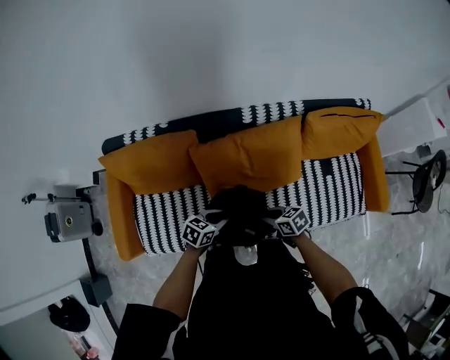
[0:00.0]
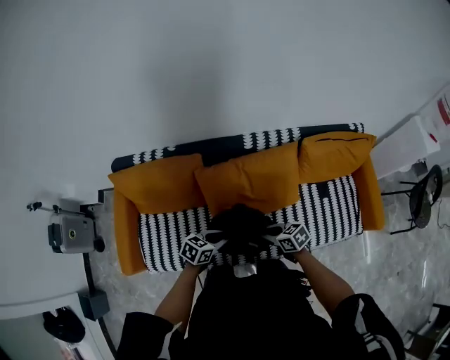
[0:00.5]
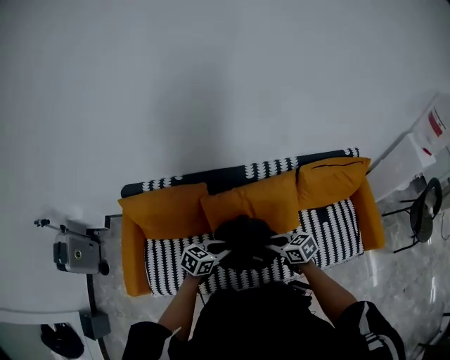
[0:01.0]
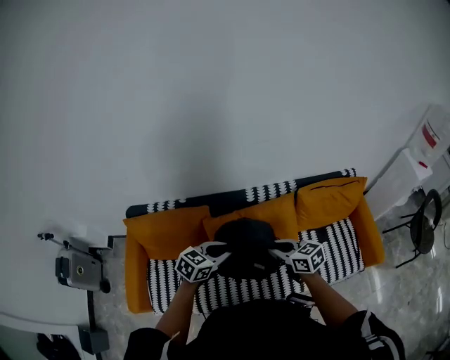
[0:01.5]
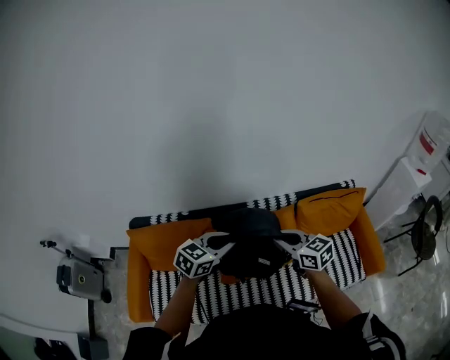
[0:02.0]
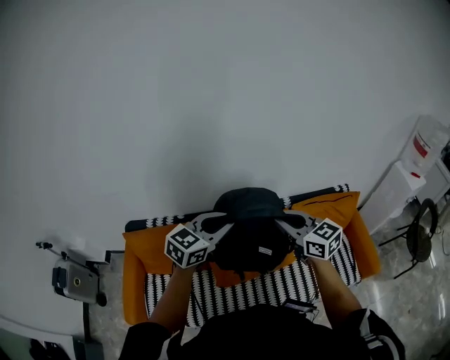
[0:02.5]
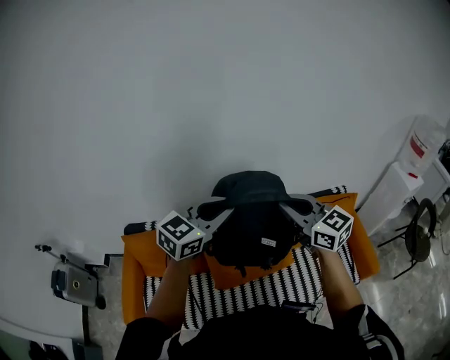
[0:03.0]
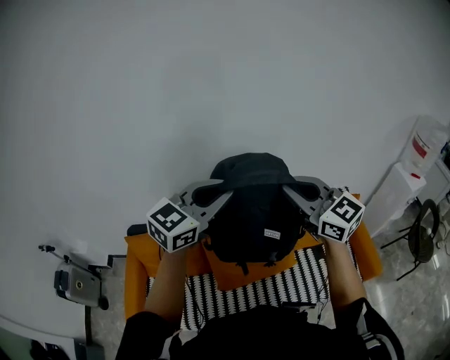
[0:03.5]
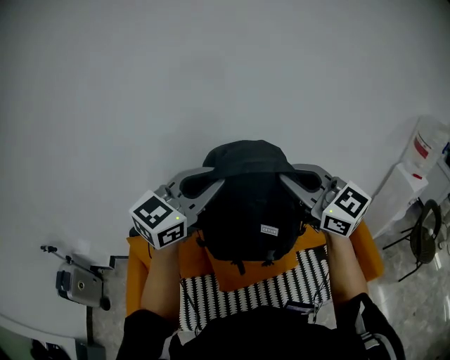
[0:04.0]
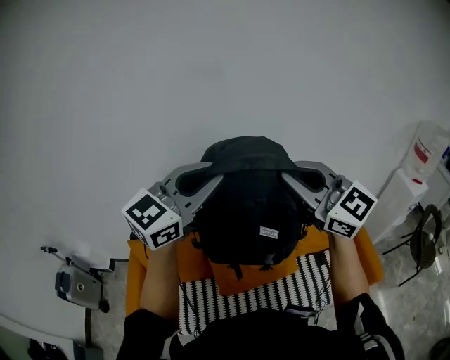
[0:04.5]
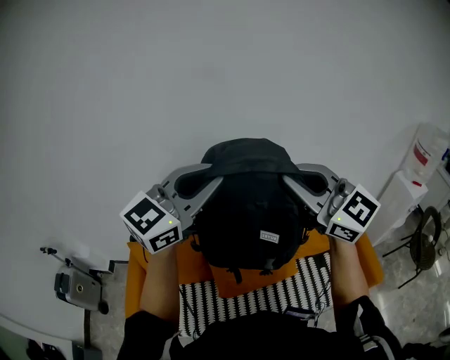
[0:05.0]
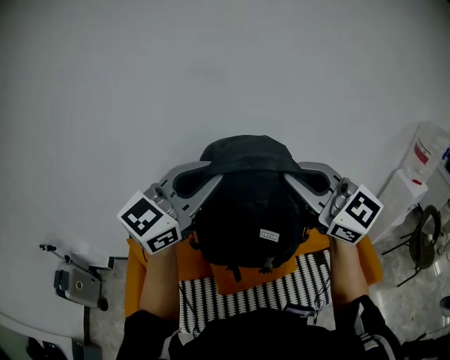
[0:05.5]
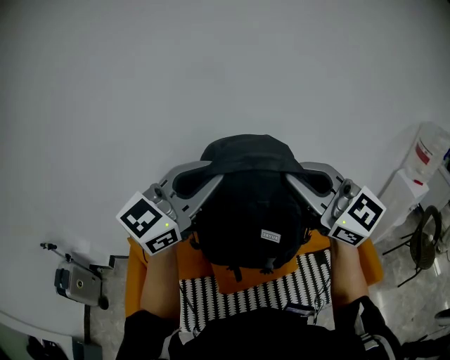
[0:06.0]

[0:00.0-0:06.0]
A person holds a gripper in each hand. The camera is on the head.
0:00.0 to 0:02.0: The grippers both shift upward by about 30 cm. The left gripper changes its angle by approximately 30 degrees, while the right gripper changes its angle by about 40 degrees.
0:02.0 to 0:04.0: Both grippers move upward, some 30 cm. The right gripper changes its angle by roughly 40 degrees. Meanwhile the left gripper swivels some 30 degrees.
0:04.0 to 0:06.0: Both grippers travel together upward, some 5 cm.

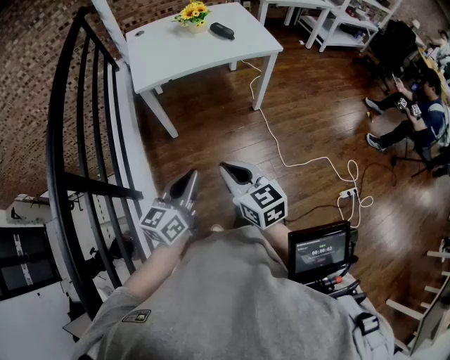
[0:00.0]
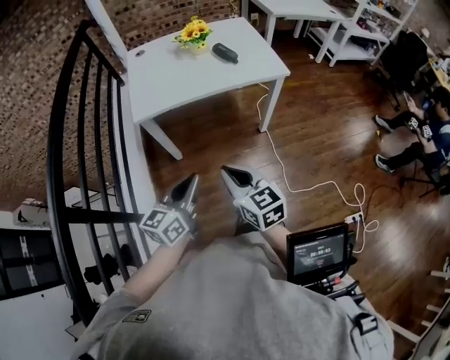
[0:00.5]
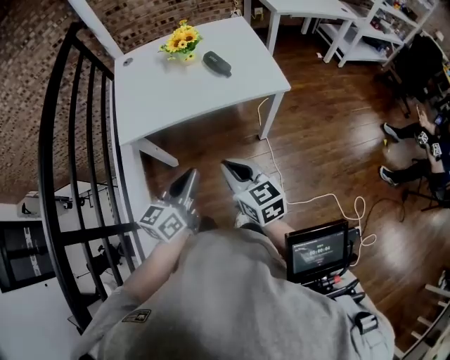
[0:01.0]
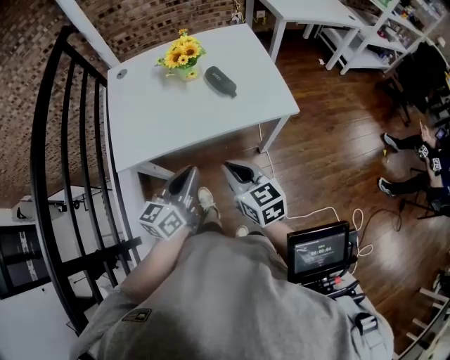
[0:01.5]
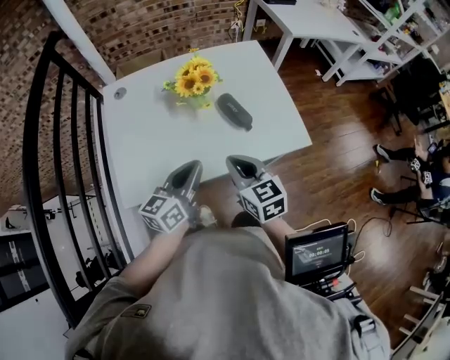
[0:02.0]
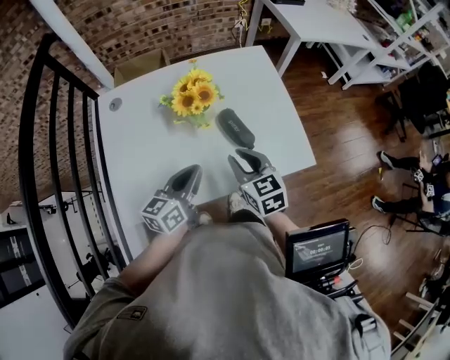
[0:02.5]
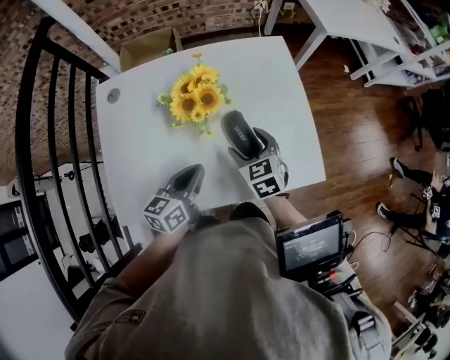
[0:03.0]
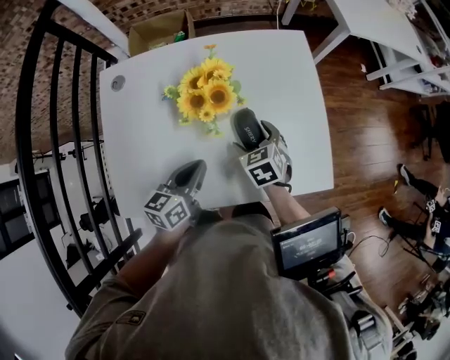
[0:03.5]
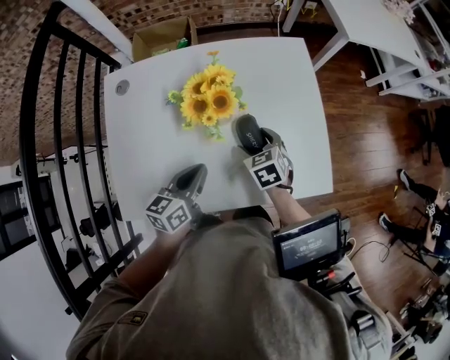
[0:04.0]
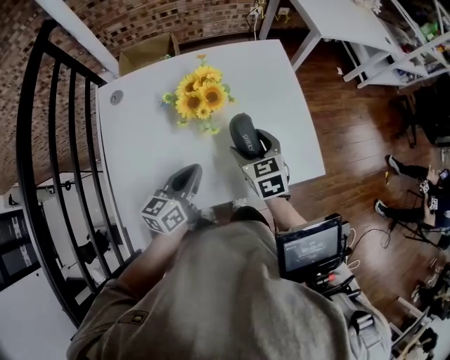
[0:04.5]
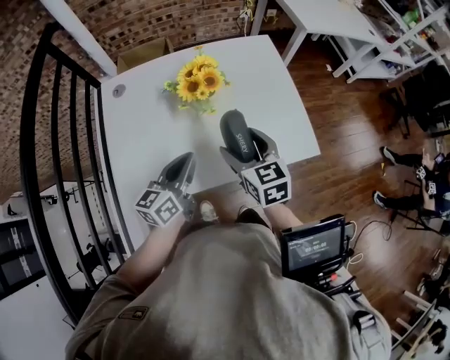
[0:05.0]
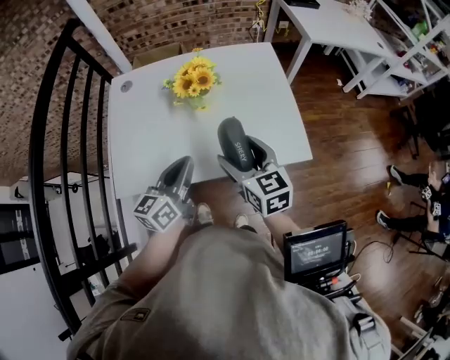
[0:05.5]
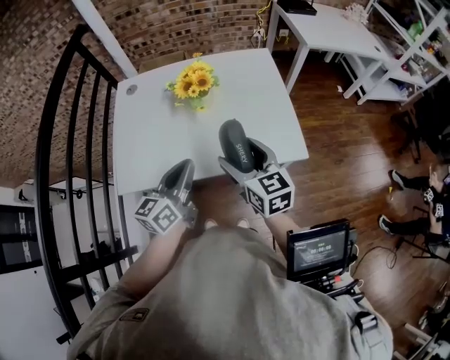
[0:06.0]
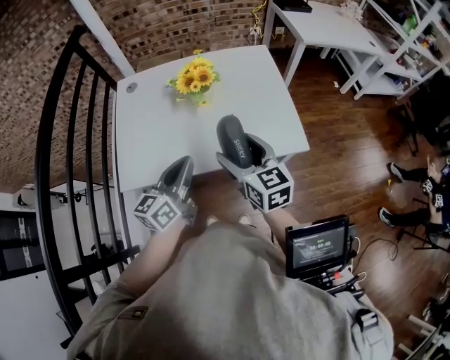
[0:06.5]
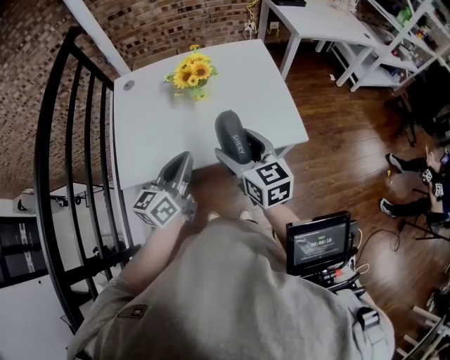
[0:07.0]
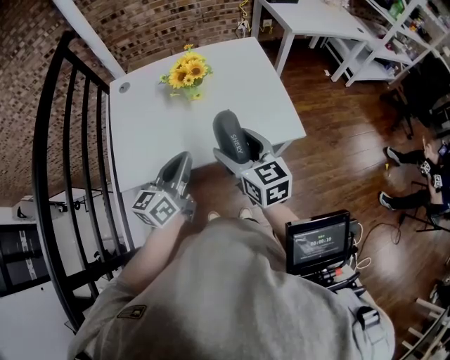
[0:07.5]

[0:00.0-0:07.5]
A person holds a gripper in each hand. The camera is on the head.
0:00.0 to 0:02.0: Both grippers are carried forward, about 60 cm.
0:02.0 to 0:04.0: The left gripper shifts about 15 cm forward and downward. Meanwhile the right gripper shifts about 25 cm forward and downward, changes its angle by some 30 degrees, and opens its fingers.
0:04.0 to 0:05.5: The right gripper goes roughly 25 cm upward and backward, and tips its fingers upward by approximately 30 degrees. The left gripper goes roughly 15 cm upward and backward.
0:05.5 to 0:07.5: The grippers both shift backward by approximately 5 cm.

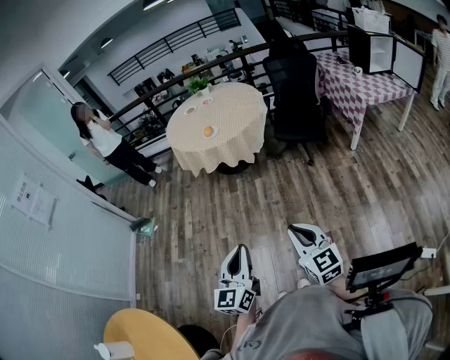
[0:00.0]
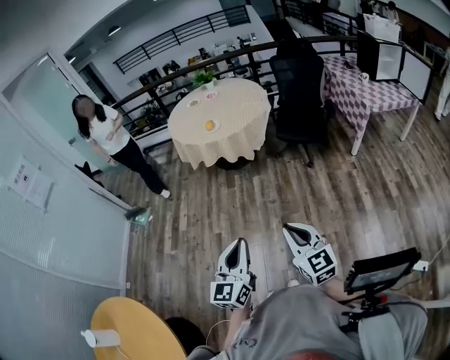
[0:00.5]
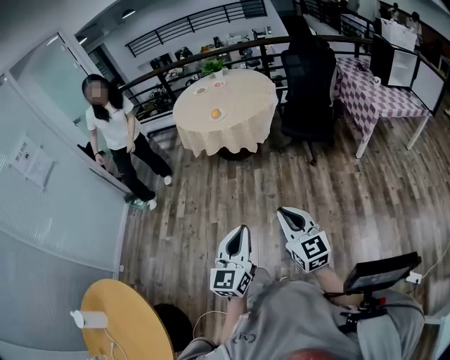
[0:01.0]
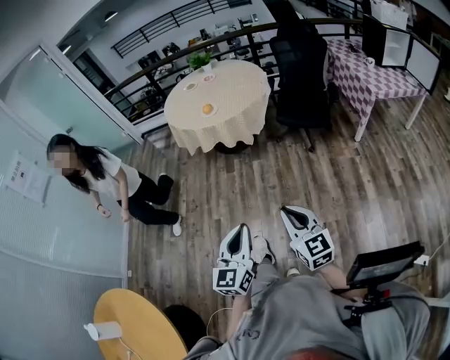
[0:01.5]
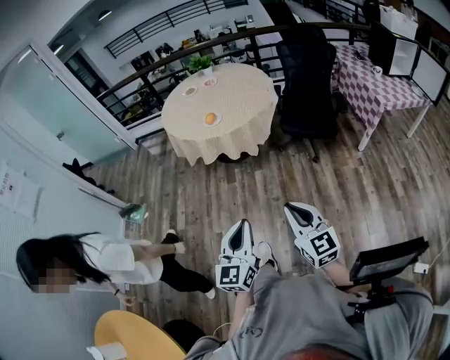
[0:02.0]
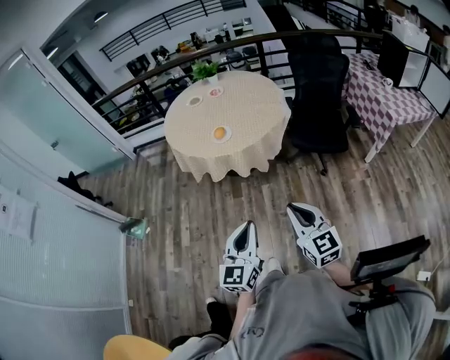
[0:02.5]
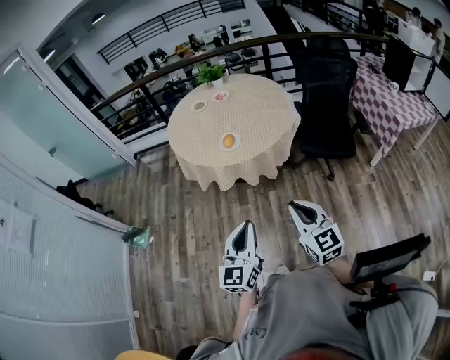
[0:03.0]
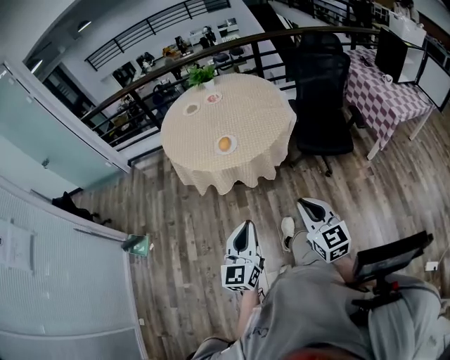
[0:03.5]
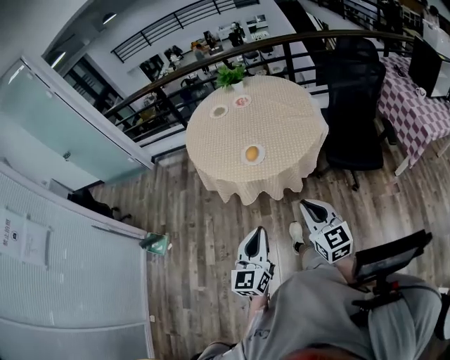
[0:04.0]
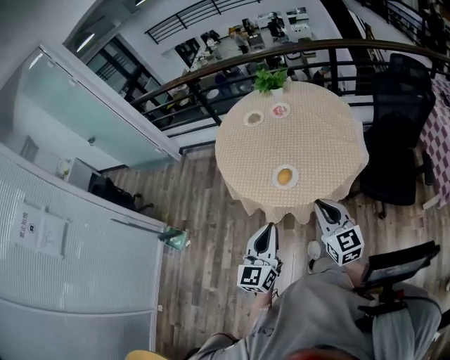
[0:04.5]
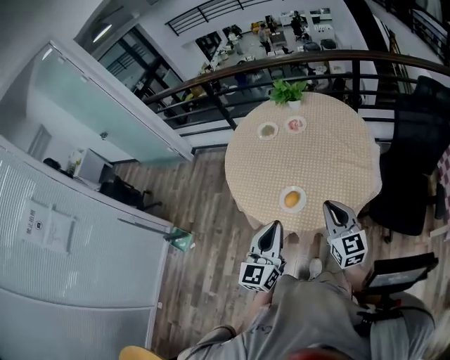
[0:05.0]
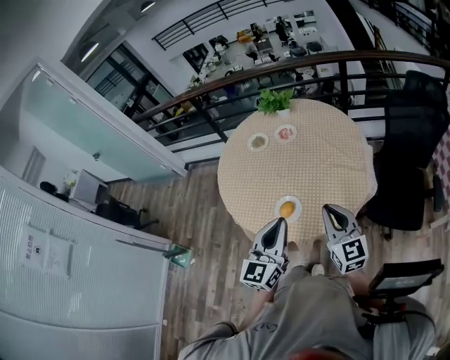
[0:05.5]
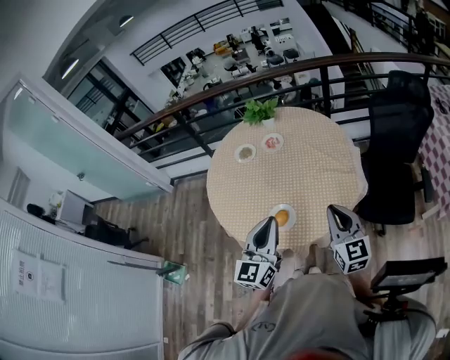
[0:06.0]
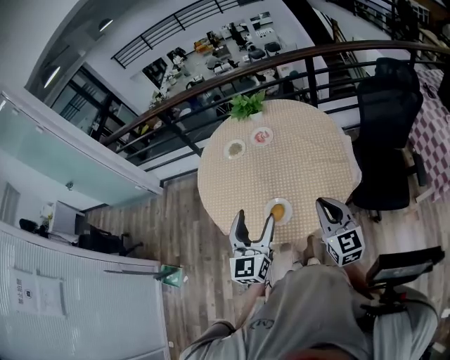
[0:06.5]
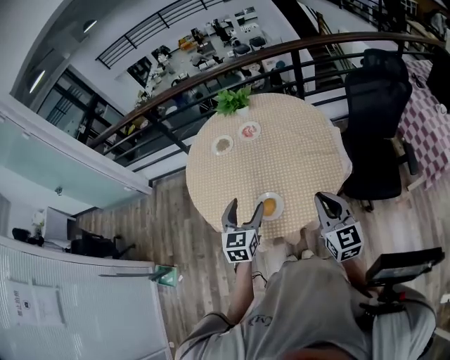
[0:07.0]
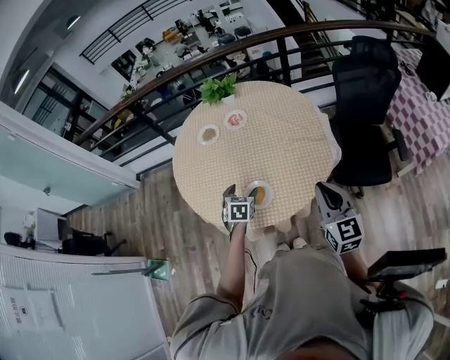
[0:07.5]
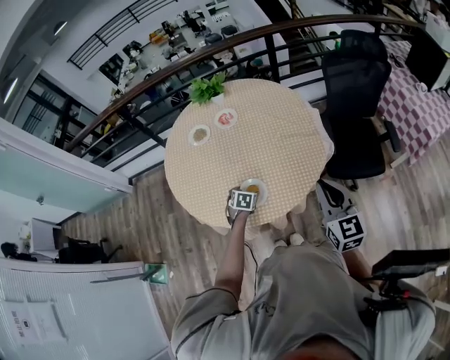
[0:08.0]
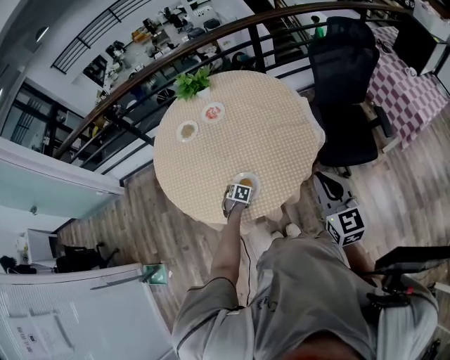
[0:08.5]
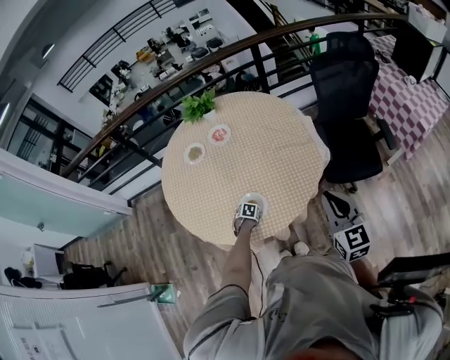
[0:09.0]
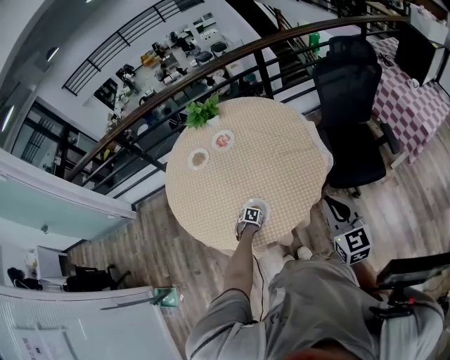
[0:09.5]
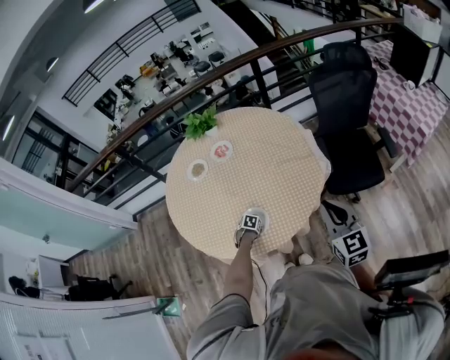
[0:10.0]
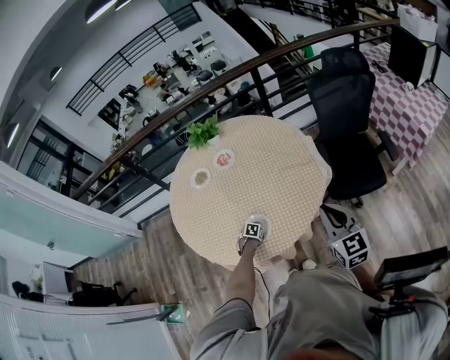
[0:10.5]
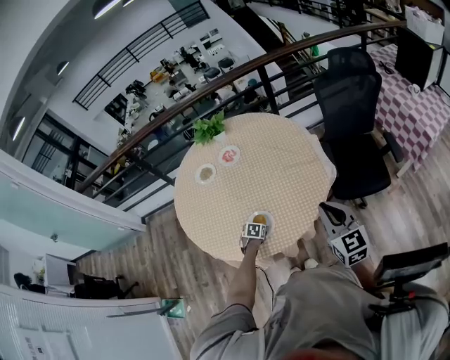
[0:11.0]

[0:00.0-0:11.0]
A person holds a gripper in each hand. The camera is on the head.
0:00.0 to 0:02.0: Both grippers move forward, approximately 20 cm.
0:02.0 to 0:03.5: Both grippers move forward and to the left, approximately 30 cm.
0:03.5 to 0:05.5: The two grippers travel together, forward, about 50 cm.
0:05.5 to 0:07.5: The left gripper travels downward and forward by roughly 30 cm, tilts its fingers about 50 degrees downward, and opens.
0:07.5 to 0:09.0: The left gripper shifts approximately 25 cm downward, and tips its fingers downward by roughly 30 degrees.
0:09.0 to 0:11.0: The left gripper ends up about 5 cm from where it was.

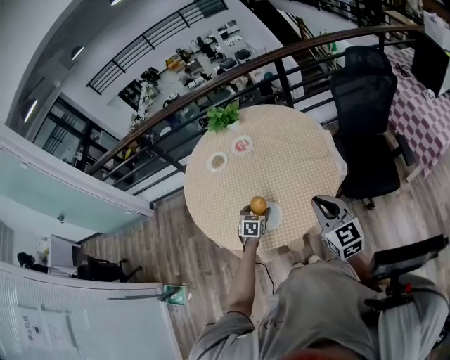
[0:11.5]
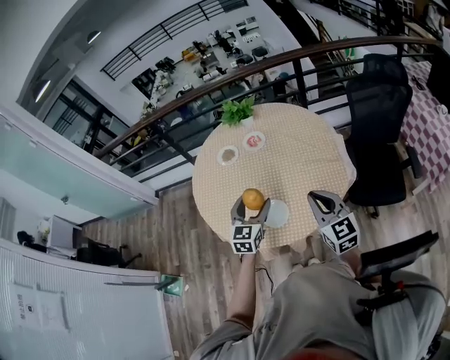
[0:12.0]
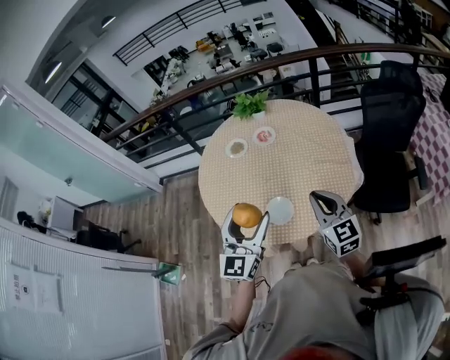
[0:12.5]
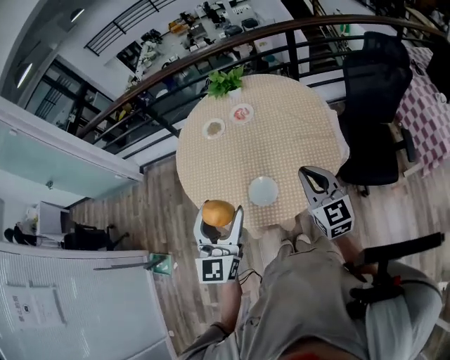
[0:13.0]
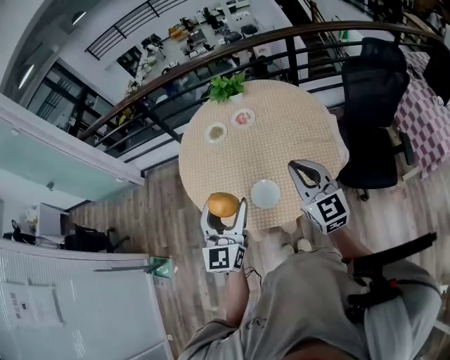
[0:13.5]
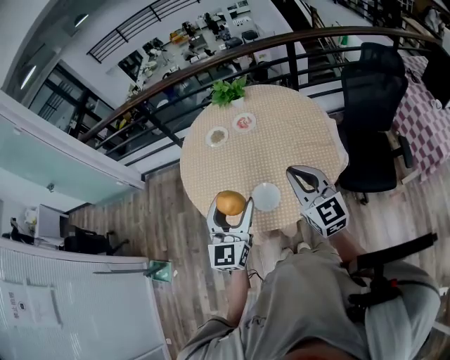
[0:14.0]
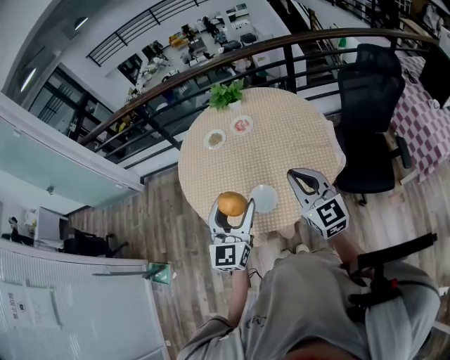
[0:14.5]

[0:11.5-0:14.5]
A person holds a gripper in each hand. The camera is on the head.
0:11.5 to 0:13.0: The right gripper travels forward by roughly 5 cm. The left gripper shifts approximately 35 cm upward, and points its fingers about 50 degrees further upward.
0:13.0 to 0:14.5: The right gripper changes place by approximately 5 cm.
